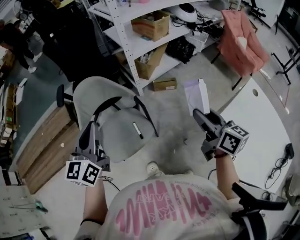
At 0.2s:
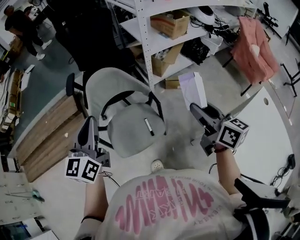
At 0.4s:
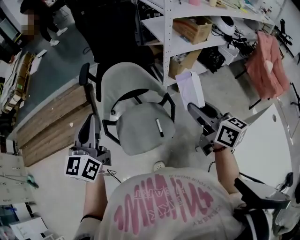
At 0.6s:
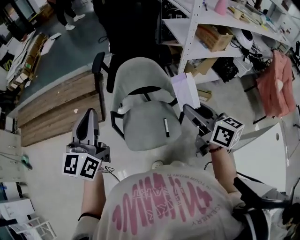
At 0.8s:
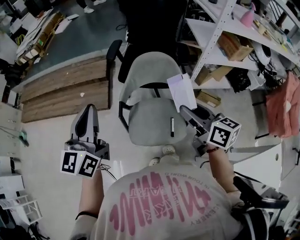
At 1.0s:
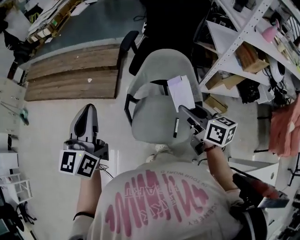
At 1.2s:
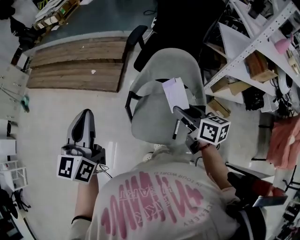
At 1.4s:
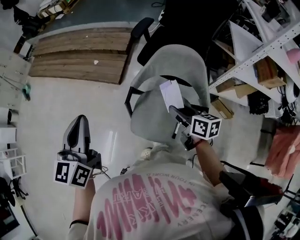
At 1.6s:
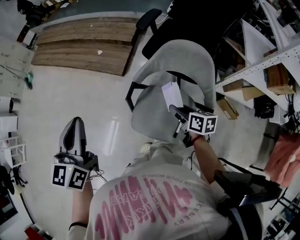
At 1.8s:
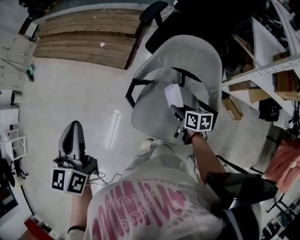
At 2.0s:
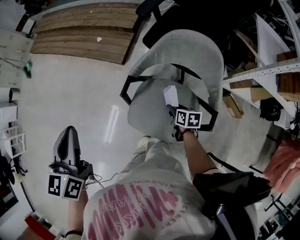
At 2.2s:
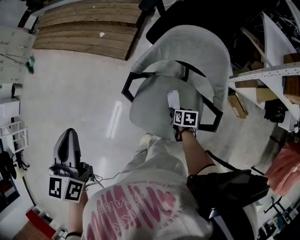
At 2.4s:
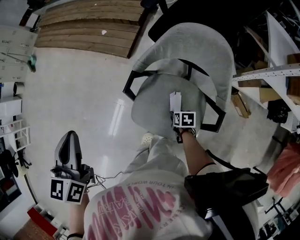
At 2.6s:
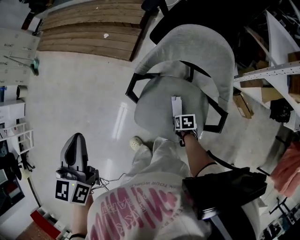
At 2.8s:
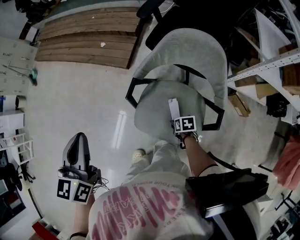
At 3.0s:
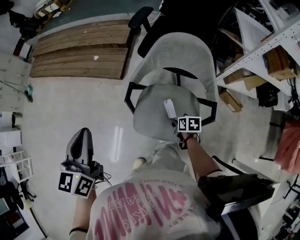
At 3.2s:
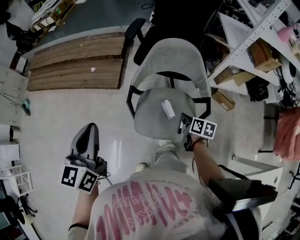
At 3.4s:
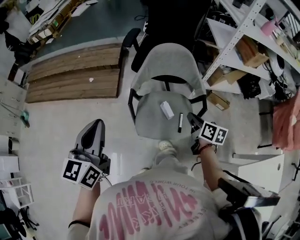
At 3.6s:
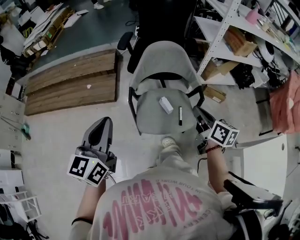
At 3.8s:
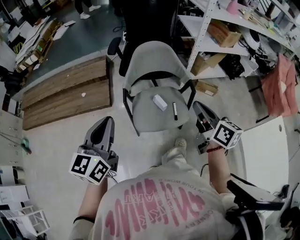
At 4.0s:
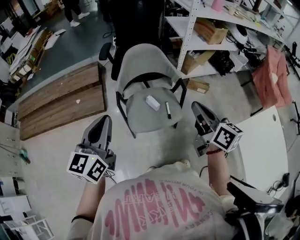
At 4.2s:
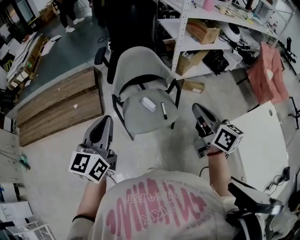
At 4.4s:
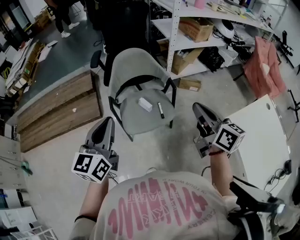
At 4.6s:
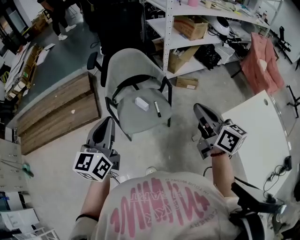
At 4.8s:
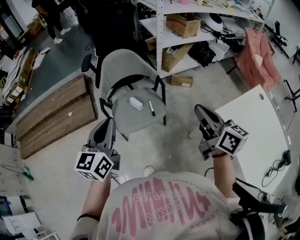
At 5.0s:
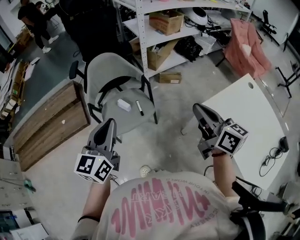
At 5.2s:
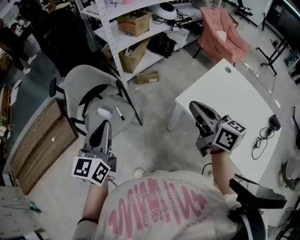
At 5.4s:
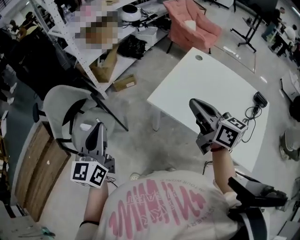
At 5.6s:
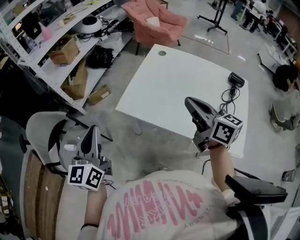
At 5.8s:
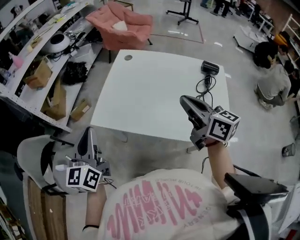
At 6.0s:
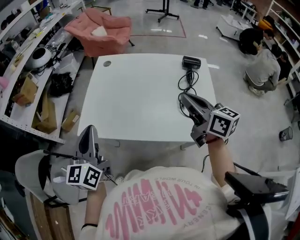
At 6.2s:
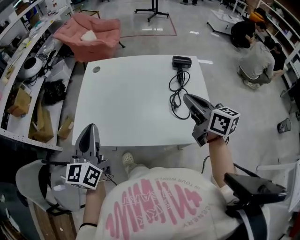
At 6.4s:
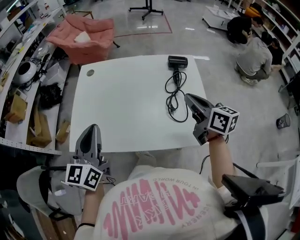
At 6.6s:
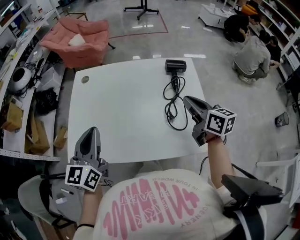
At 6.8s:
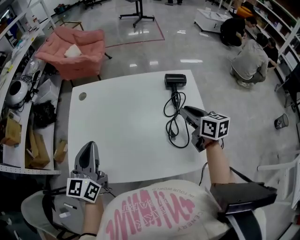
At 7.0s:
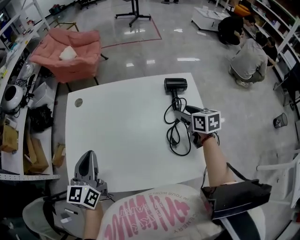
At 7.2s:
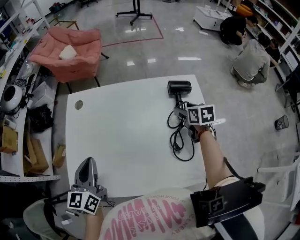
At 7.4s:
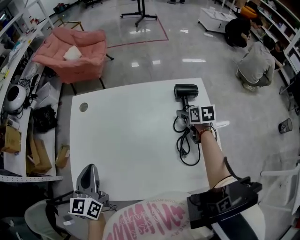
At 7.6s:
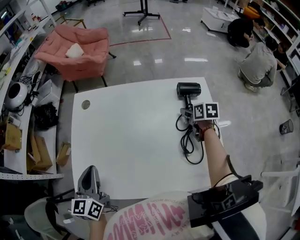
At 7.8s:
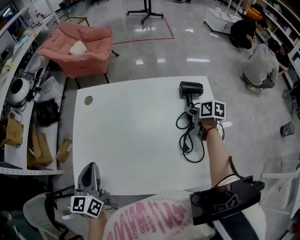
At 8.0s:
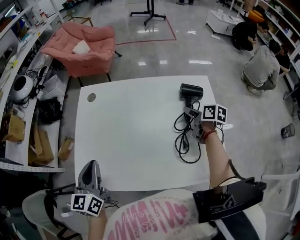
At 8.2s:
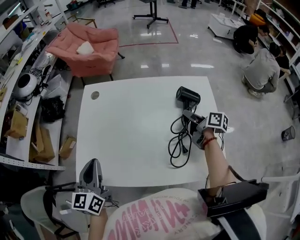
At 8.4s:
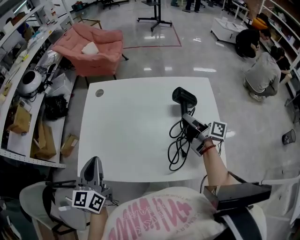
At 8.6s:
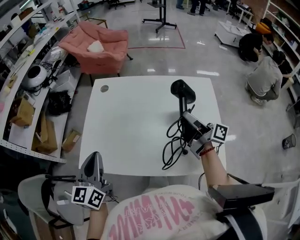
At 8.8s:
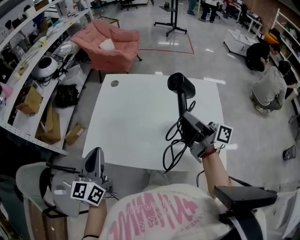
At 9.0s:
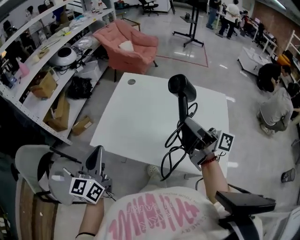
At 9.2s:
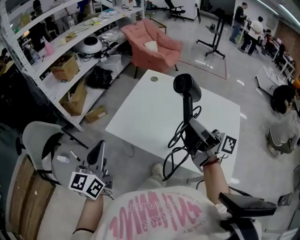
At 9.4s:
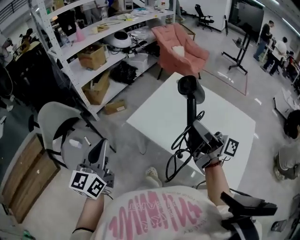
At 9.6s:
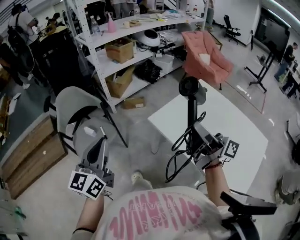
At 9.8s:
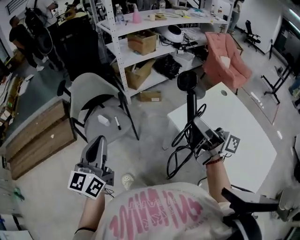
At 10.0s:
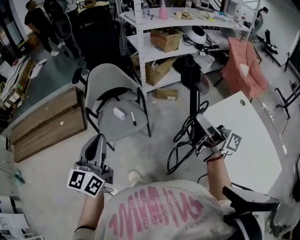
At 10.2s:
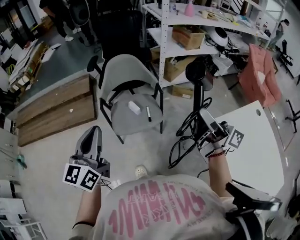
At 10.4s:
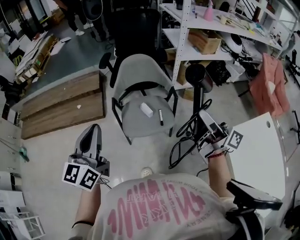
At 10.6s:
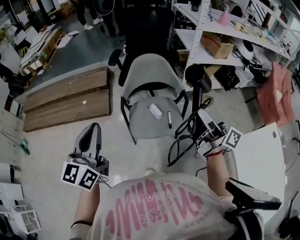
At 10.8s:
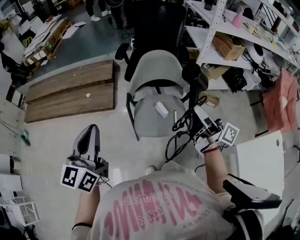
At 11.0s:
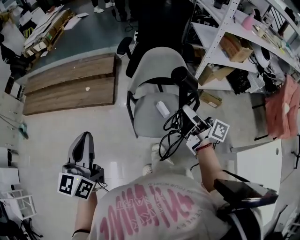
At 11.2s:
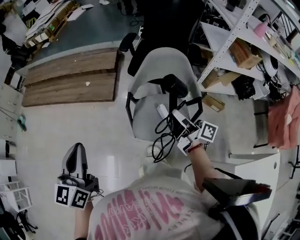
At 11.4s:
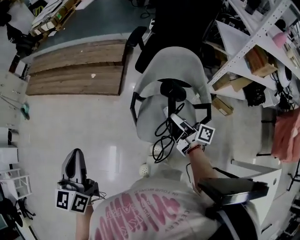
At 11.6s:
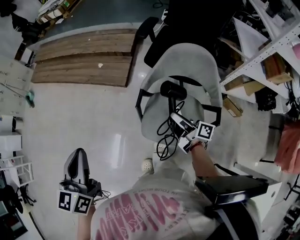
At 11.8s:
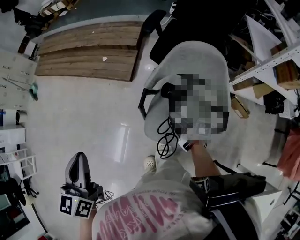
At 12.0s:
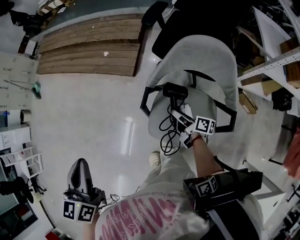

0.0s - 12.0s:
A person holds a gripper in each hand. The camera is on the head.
0.0s - 1.6s: The right gripper shifts by some 50 cm, and changes its angle by roughly 60 degrees, while the left gripper ends up roughly 30 cm from where it was, and changes its angle by roughly 50 degrees.
1.6s - 3.0s: The right gripper shifts approximately 20 cm downward, and changes its angle by about 30 degrees.
3.0s - 4.4s: The right gripper heads upward, covering roughly 40 cm, tilts its fingers some 50 degrees upward, and closes its fingers, while the left gripper changes place by about 15 cm, and rotates about 40 degrees.
4.4s - 6.0s: The pair of grippers is taken roughly 60 cm. The right gripper changes its angle by about 60 degrees. Meanwhile the left gripper changes its angle by about 50 degrees.
6.0s - 7.6s: The left gripper moves forward and downward, approximately 15 cm, while the right gripper heads downward, forward and to the right, covering roughly 35 cm, points its fingers about 40 degrees further downward, and opens.
7.6s - 9.0s: The left gripper goes about 20 cm backward, upward and to the left. The right gripper goes about 40 cm upward, to the left and backward, and tips its fingers upward by roughly 70 degrees.
9.0s - 10.4s: The two grippers travel together, roughly 60 cm. The right gripper turns by roughly 50 degrees; the left gripper turns by approximately 60 degrees.
10.4s - 12.0s: The right gripper shifts about 40 cm downward, and tilts its fingers approximately 40 degrees downward, while the left gripper changes place by roughly 20 cm, and tips its fingers downward by about 30 degrees.

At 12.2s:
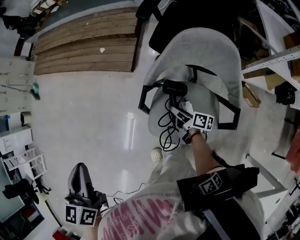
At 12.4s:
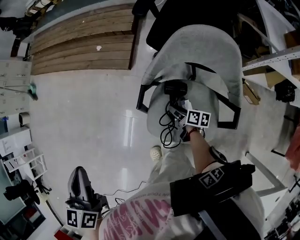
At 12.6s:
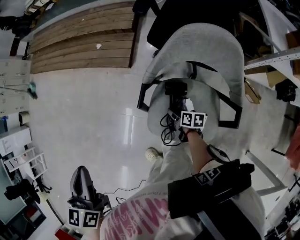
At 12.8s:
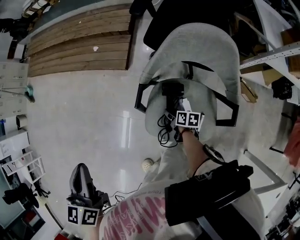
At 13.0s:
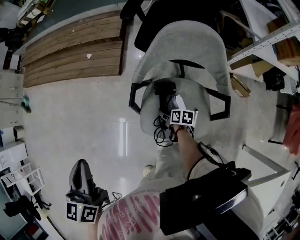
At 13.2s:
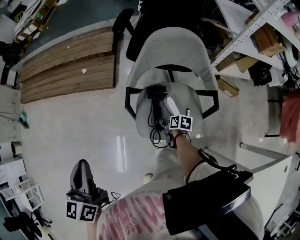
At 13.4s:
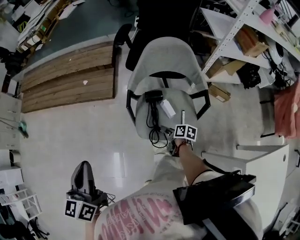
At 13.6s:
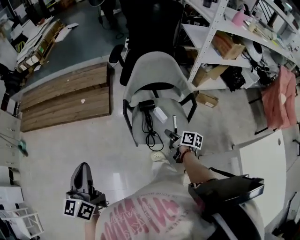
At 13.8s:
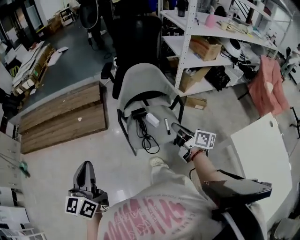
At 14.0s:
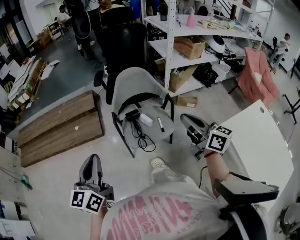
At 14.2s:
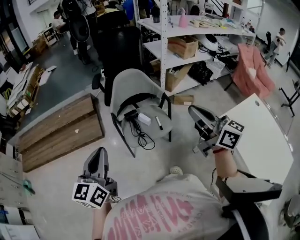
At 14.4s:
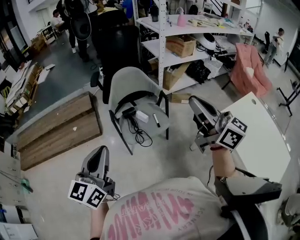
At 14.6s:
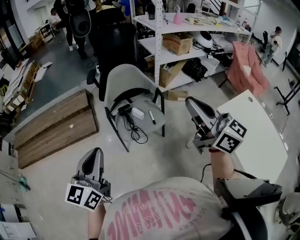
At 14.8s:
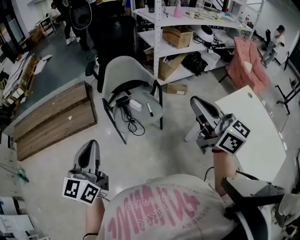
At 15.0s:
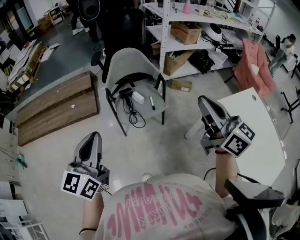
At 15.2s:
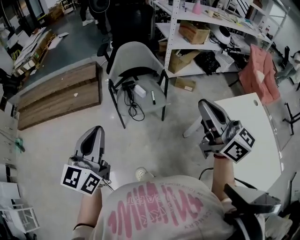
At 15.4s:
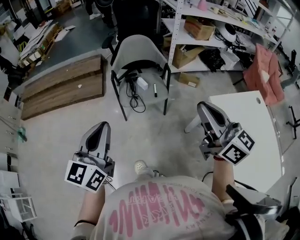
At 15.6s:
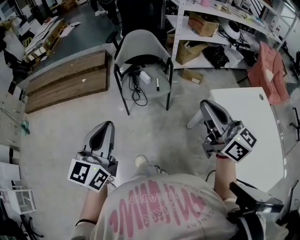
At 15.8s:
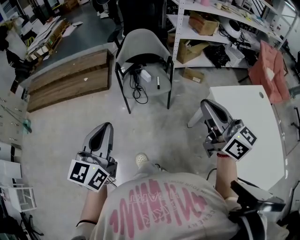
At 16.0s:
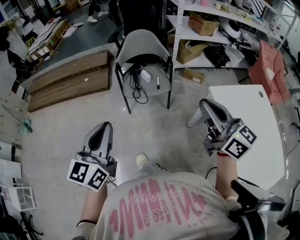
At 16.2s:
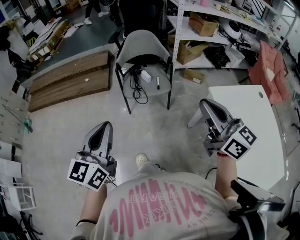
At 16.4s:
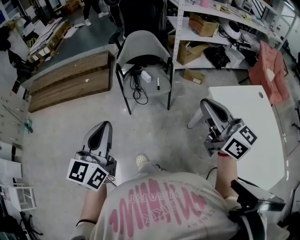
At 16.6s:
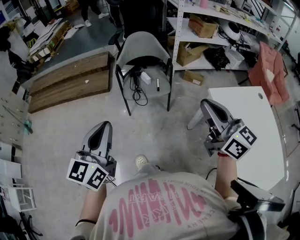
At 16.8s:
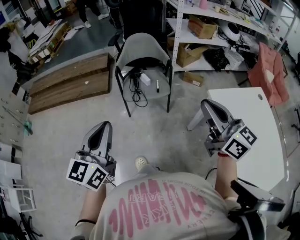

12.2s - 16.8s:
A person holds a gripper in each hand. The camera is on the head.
12.2s - 13.8s: The right gripper shifts some 25 cm upward, changes its angle by roughly 40 degrees, and closes its fingers. The left gripper moves approximately 10 cm, and changes its angle by about 40 degrees.
13.8s - 15.2s: The right gripper is displaced backward and upward by approximately 40 cm, and swivels about 40 degrees, while the left gripper heads backward, to the right and upward, covering roughly 20 cm.
15.2s - 16.8s: The two grippers go some 10 cm backward.

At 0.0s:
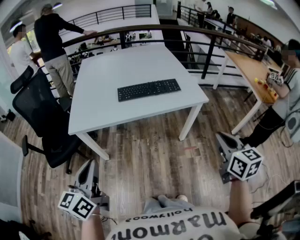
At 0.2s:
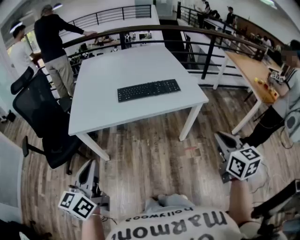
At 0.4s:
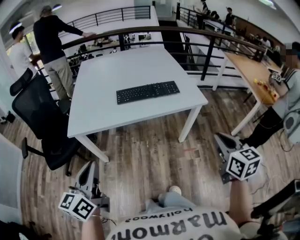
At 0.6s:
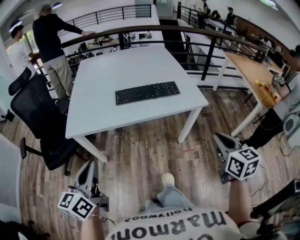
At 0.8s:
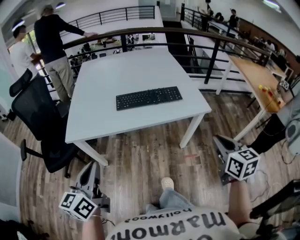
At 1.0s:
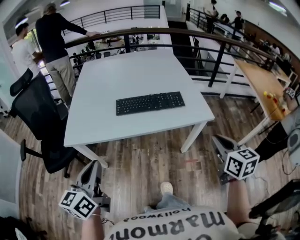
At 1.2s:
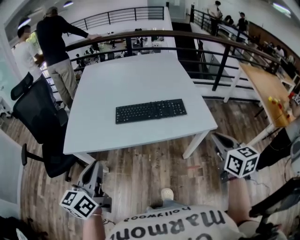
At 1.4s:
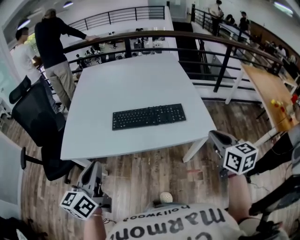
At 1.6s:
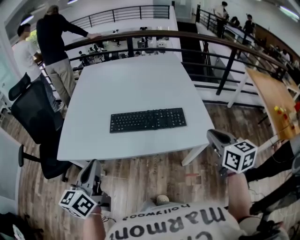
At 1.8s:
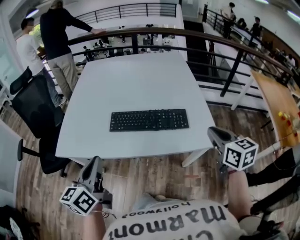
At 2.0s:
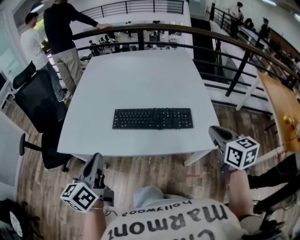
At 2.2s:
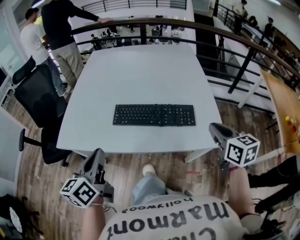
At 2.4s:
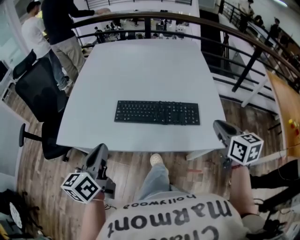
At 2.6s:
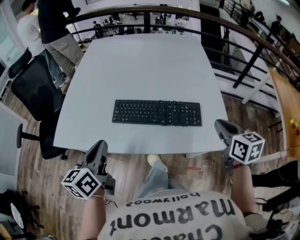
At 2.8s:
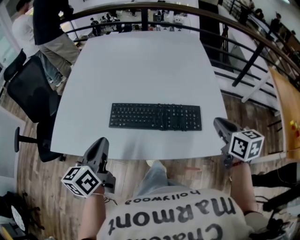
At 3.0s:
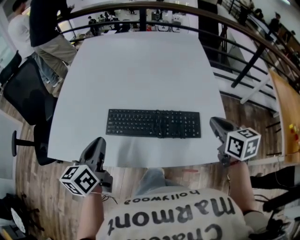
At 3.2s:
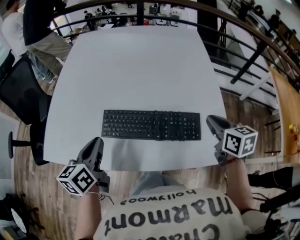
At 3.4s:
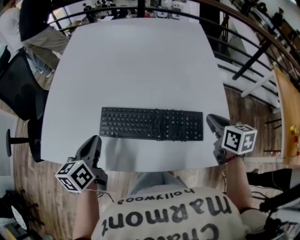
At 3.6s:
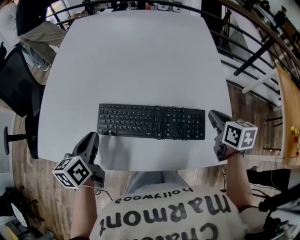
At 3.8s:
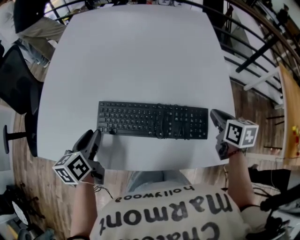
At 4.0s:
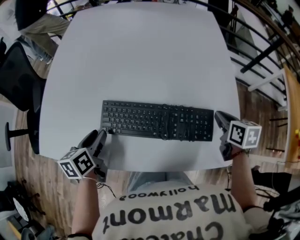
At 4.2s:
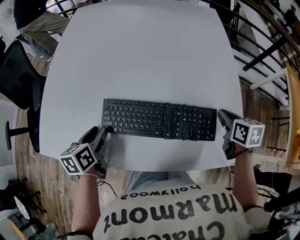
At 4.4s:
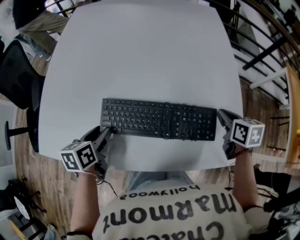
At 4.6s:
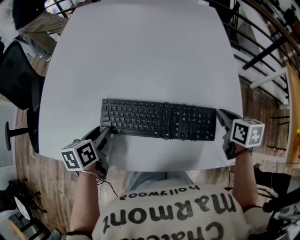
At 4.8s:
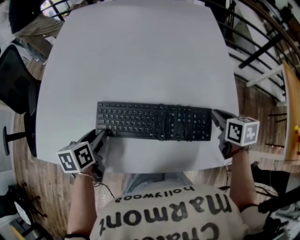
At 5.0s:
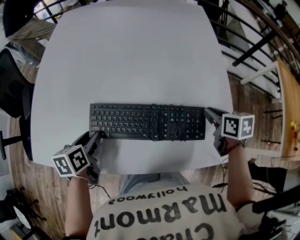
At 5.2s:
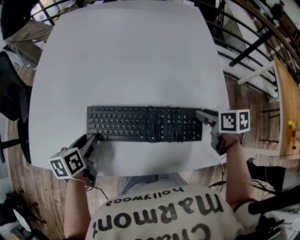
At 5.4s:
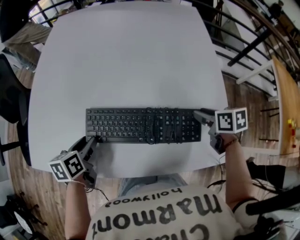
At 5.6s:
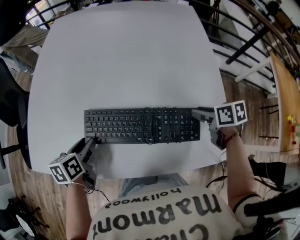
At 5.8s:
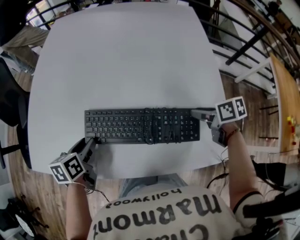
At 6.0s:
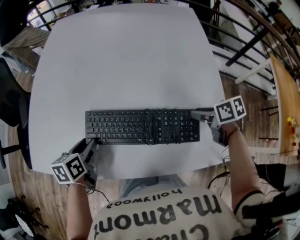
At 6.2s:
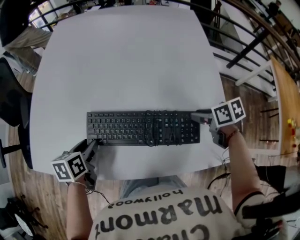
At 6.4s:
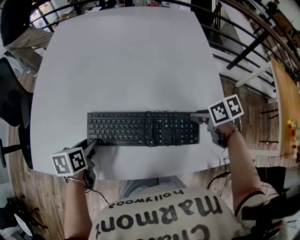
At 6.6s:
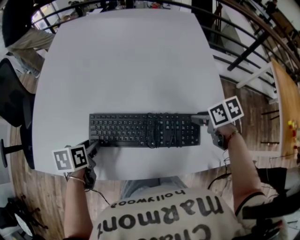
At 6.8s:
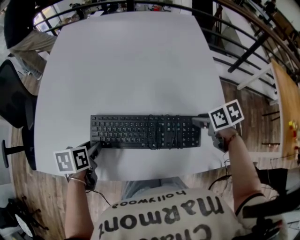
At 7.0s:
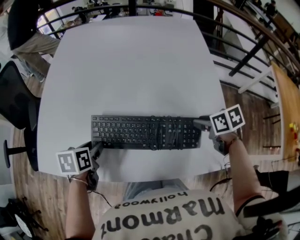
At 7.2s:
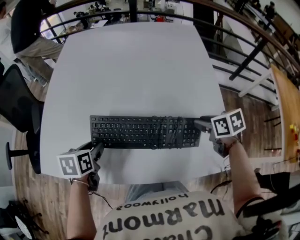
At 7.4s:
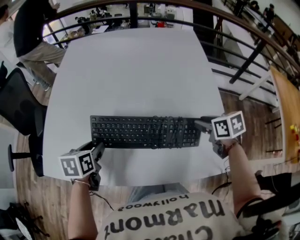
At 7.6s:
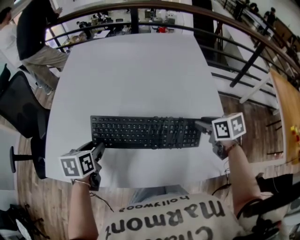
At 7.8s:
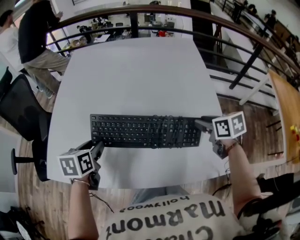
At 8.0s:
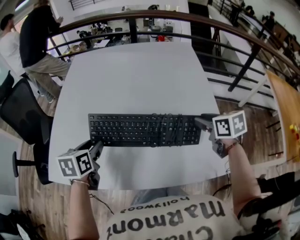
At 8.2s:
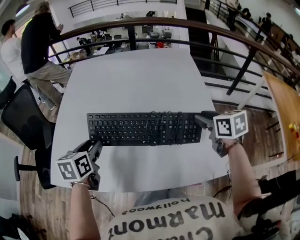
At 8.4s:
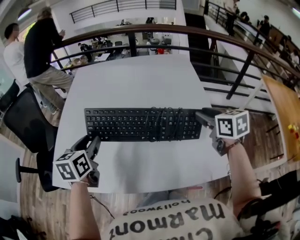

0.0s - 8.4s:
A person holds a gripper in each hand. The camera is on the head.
0.0s - 1.4s: The left gripper moves forward and to the right, about 20 cm. Meanwhile the right gripper heads forward, covering some 25 cm.
1.4s - 2.8s: Both grippers travel together forward and downward, about 20 cm.
2.8s - 4.2s: The two grippers go roughly 15 cm downward and forward. The left gripper turns by some 30 degrees, and opens up.
4.2s - 5.6s: The right gripper changes its angle by some 20 degrees, and opens its fingers.
5.6s - 7.0s: The grippers move only a little.
7.0s - 8.4s: The right gripper swivels about 30 degrees. The left gripper tilts its fingers about 30 degrees upward.
